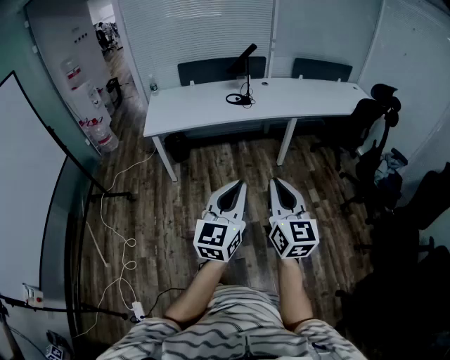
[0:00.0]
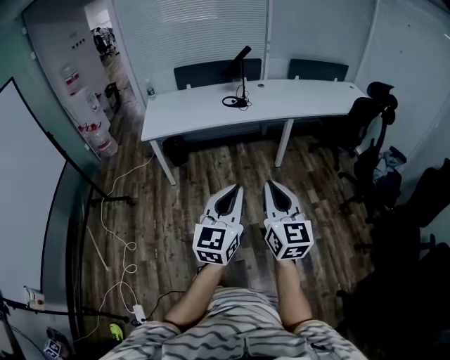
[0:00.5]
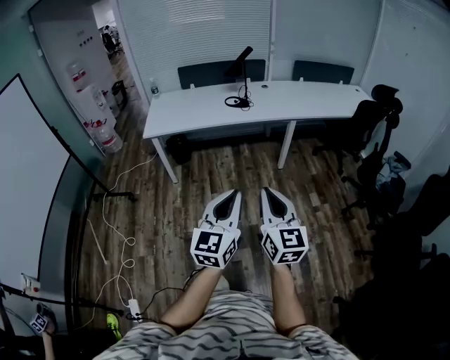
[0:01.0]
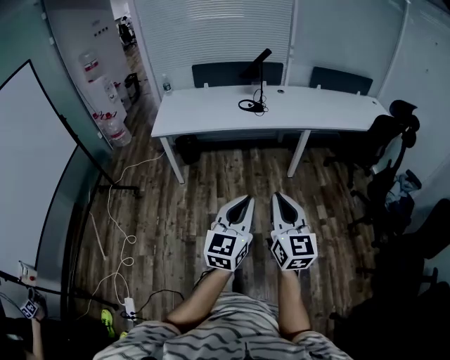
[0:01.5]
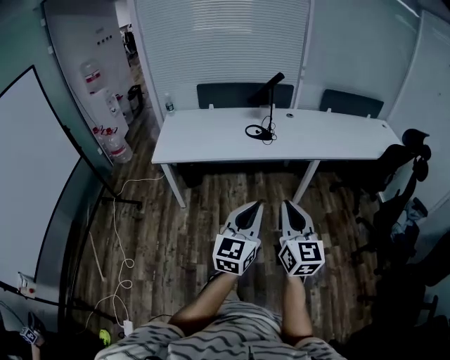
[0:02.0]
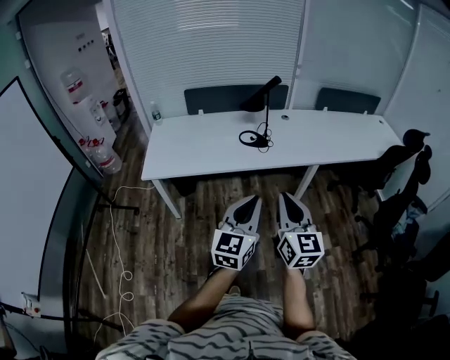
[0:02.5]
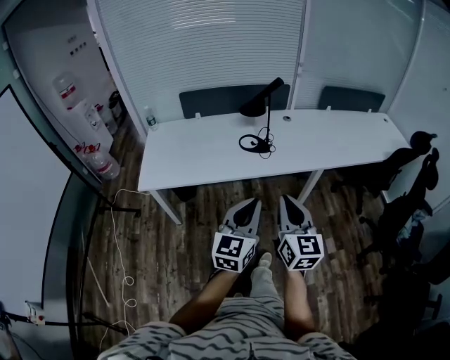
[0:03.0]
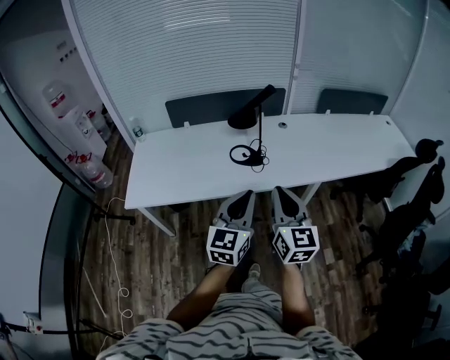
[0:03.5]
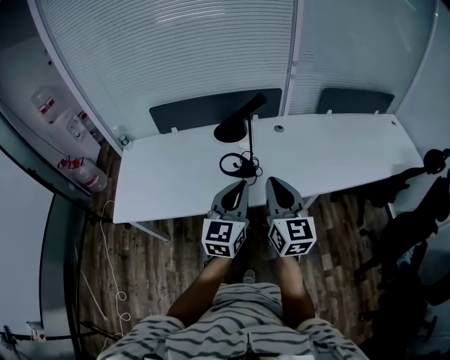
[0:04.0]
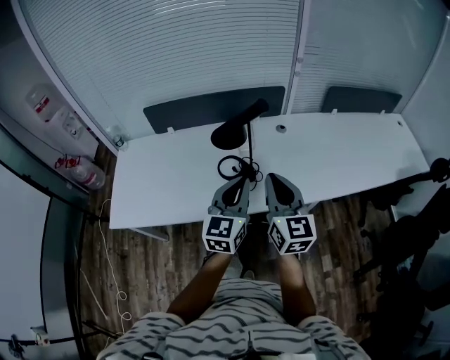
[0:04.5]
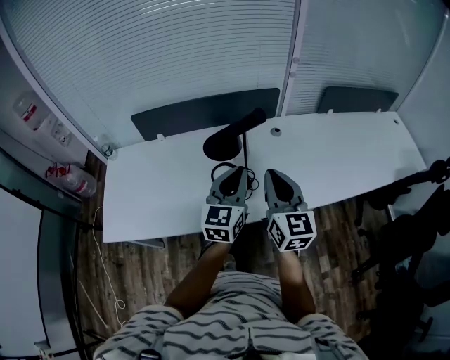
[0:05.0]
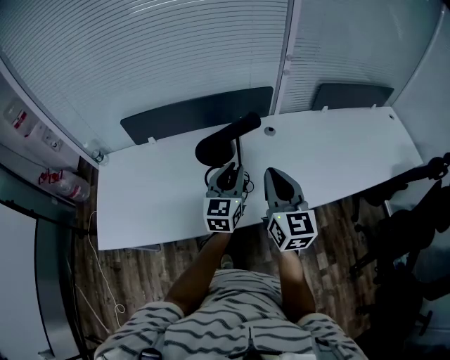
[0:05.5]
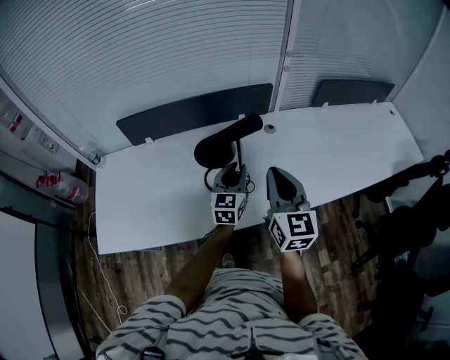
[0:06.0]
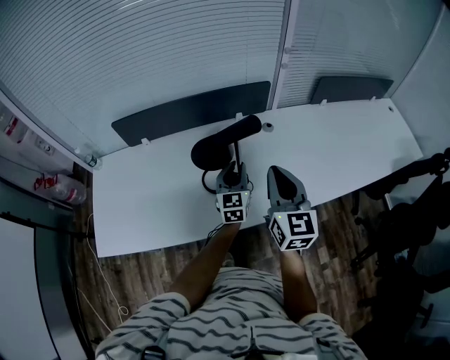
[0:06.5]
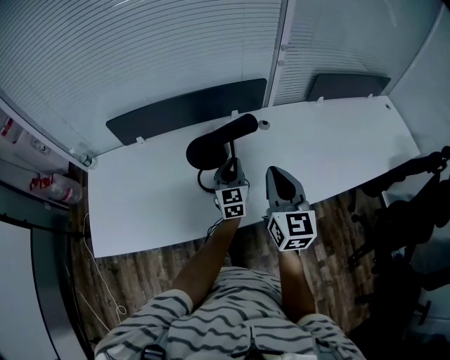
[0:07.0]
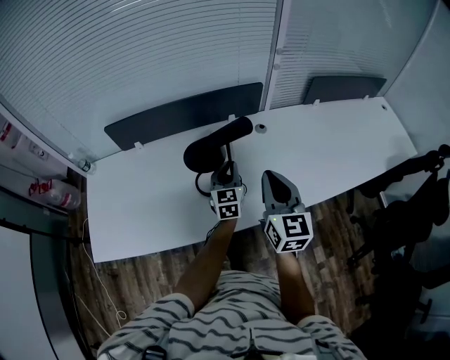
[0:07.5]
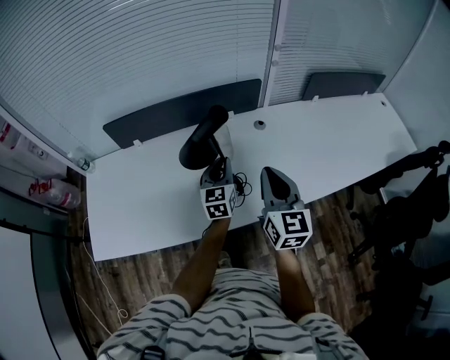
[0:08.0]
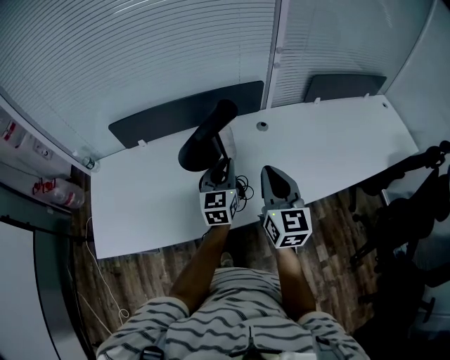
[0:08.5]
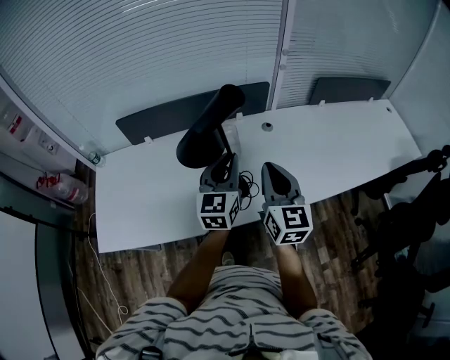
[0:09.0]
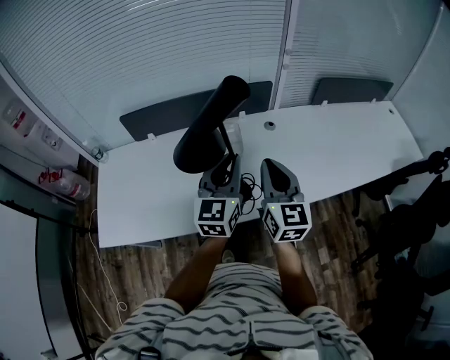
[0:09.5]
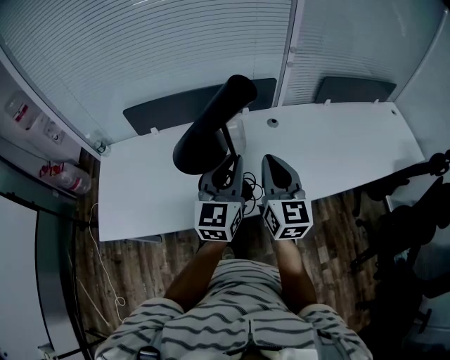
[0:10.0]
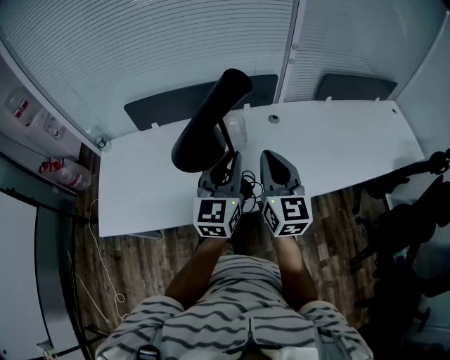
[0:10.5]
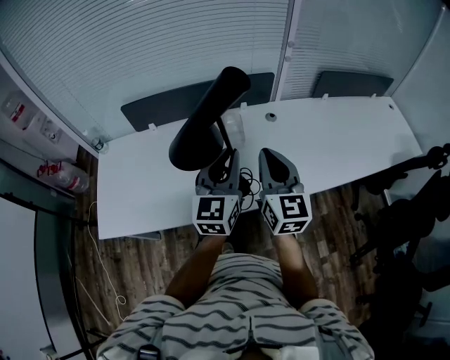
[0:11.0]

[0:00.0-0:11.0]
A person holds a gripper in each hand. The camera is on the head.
0:00.0 to 0:02.0: The grippers both shift forward by about 25 cm.
0:02.0 to 0:03.5: Both grippers travel together forward, about 35 cm.
0:03.5 to 0:05.5: The two grippers go approximately 35 cm forward.
0:05.5 to 0:07.5: The right gripper ends up some 5 cm from where it was, while the left gripper goes some 15 cm downward and forward.
0:07.5 to 0:09.0: The left gripper travels upward and backward by approximately 15 cm.
0:09.0 to 0:11.0: The left gripper heads backward, covering some 5 cm.

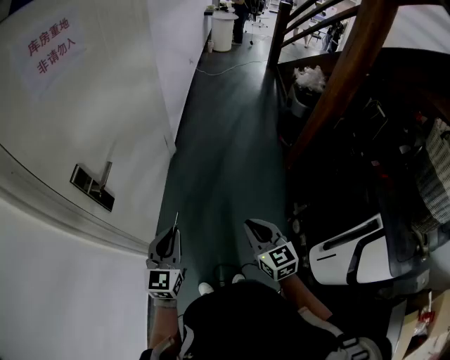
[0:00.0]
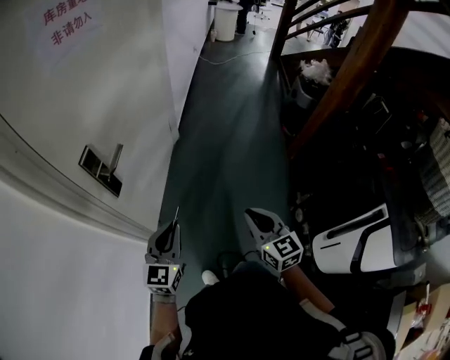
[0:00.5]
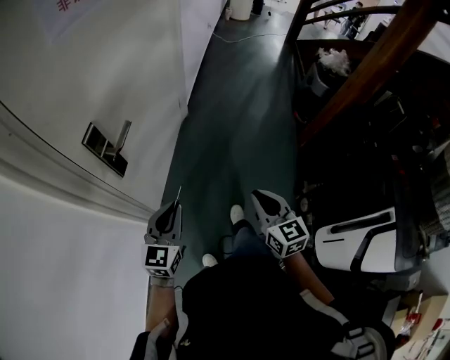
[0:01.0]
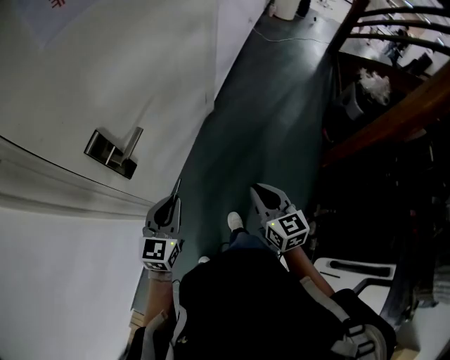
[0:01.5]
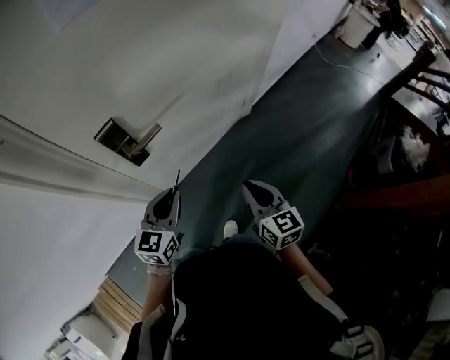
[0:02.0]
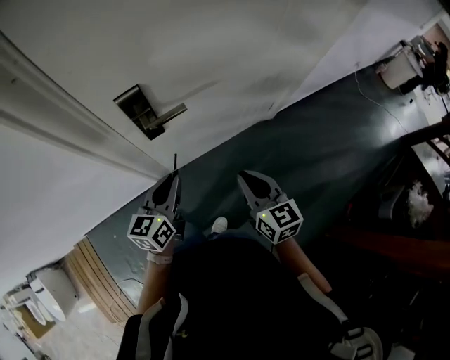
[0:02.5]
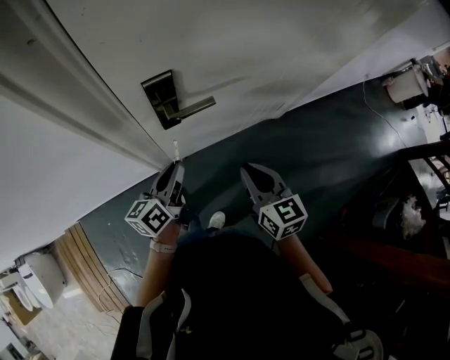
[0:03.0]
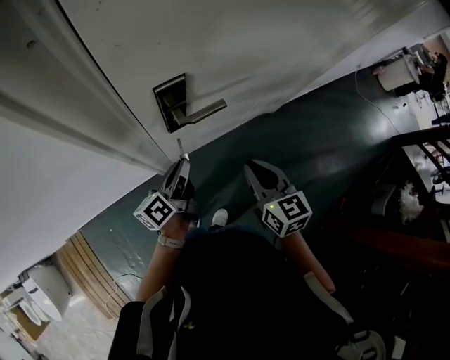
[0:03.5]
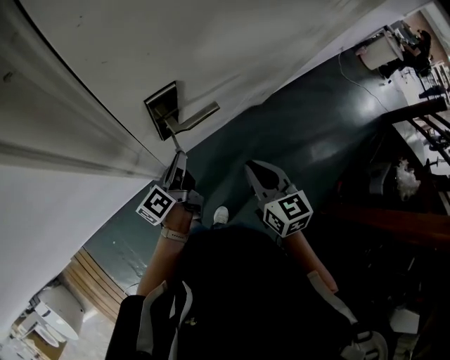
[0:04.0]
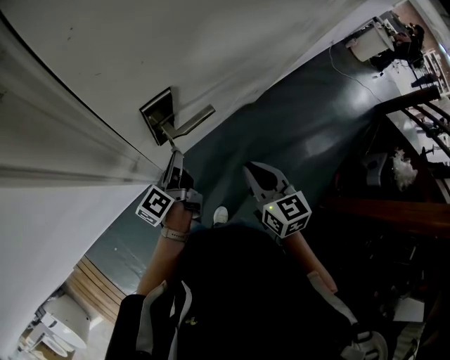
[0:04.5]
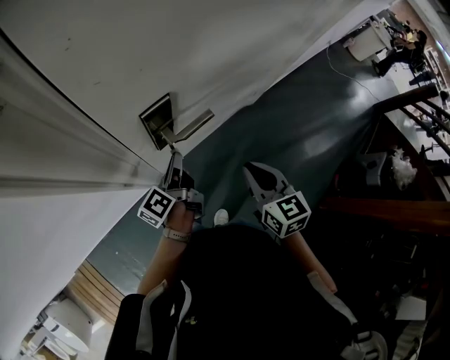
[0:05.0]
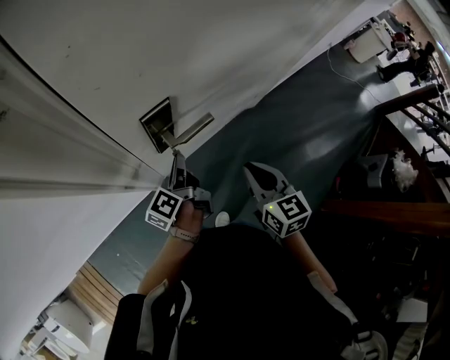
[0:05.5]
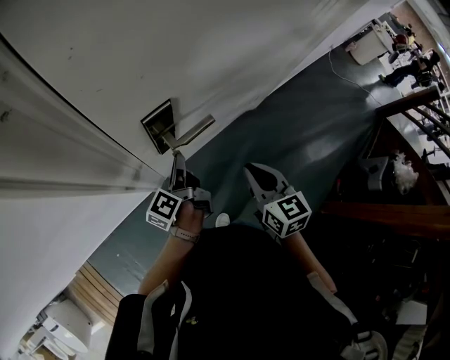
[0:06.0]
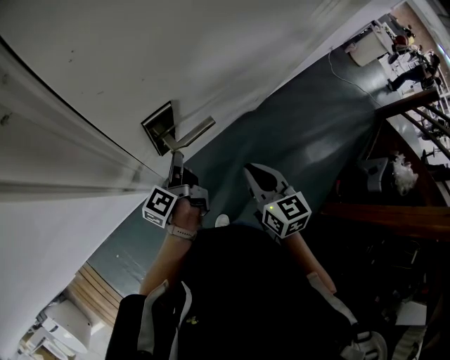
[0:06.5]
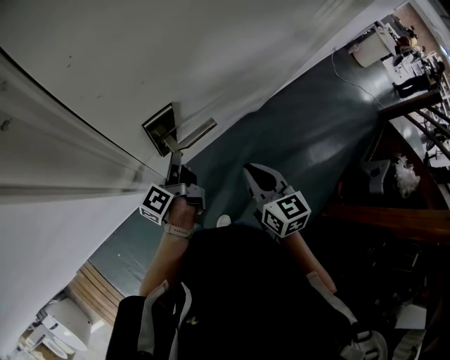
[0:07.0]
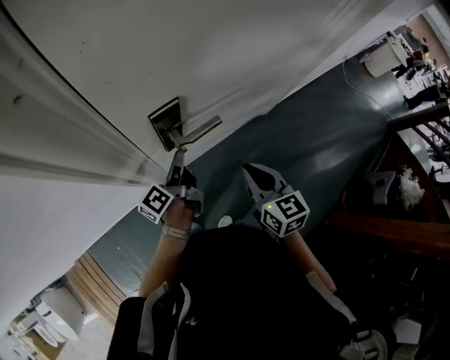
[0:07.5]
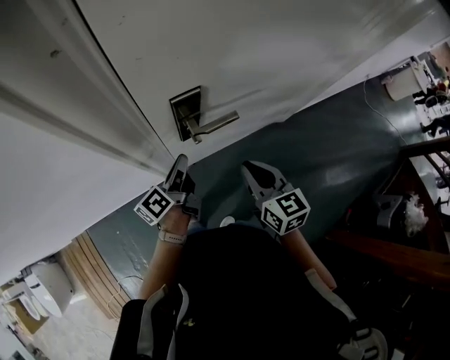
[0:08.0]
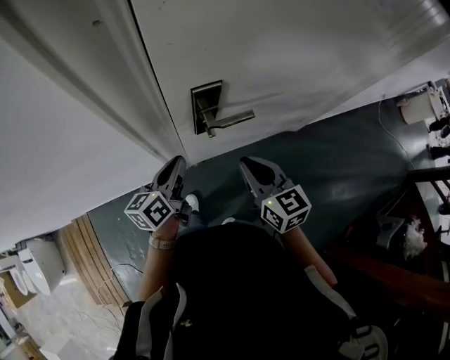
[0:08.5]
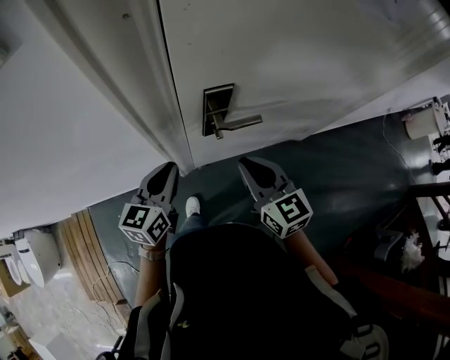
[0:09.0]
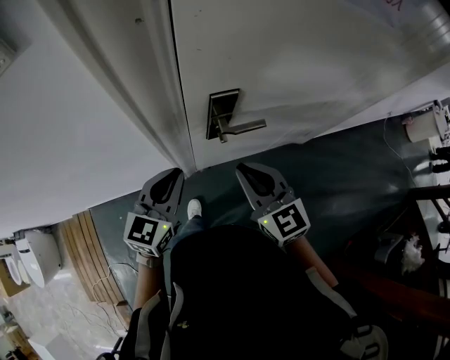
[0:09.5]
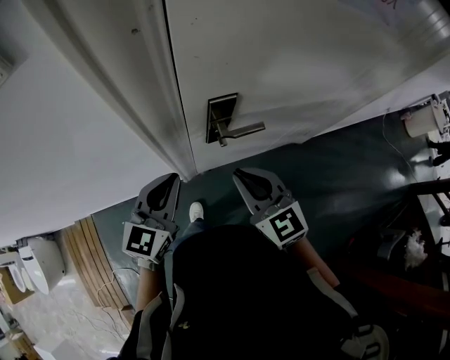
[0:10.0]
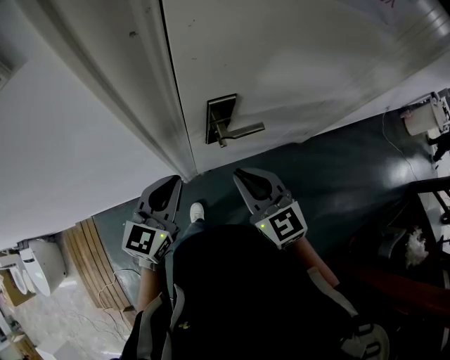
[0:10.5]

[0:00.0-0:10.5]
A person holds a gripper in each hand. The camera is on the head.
0:00.0 to 0:02.0: The left gripper changes place by about 25 cm, and turns by about 30 degrees. The right gripper changes place by roughly 35 cm, and changes its angle by some 40 degrees.
0:02.0 to 0:04.0: The right gripper shifts some 15 cm to the left and forward. Meanwhile the left gripper travels forward, to the left and downward by approximately 20 cm, and twists roughly 70 degrees counterclockwise, seen from behind.
0:04.0 to 0:06.5: The grippers make only small movements.
0:06.5 to 0:08.5: The right gripper is displaced to the left by some 10 cm, and turns by approximately 20 degrees; the left gripper heads backward, to the left and upward, covering about 15 cm, and turns by roughly 40 degrees.
0:08.5 to 0:10.5: The right gripper goes roughly 10 cm to the left and upward, while the left gripper goes about 10 cm upward, and swivels approximately 40 degrees.

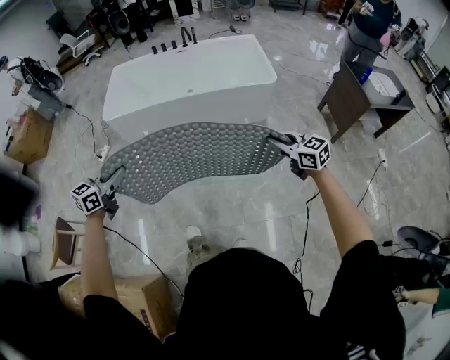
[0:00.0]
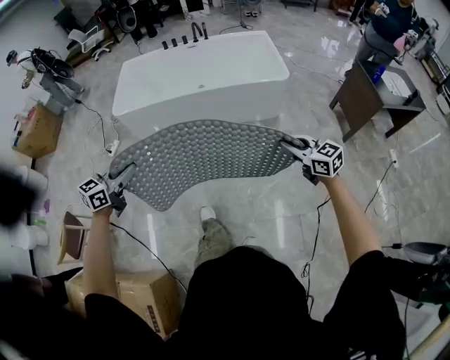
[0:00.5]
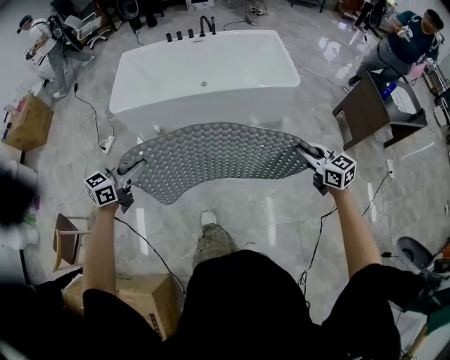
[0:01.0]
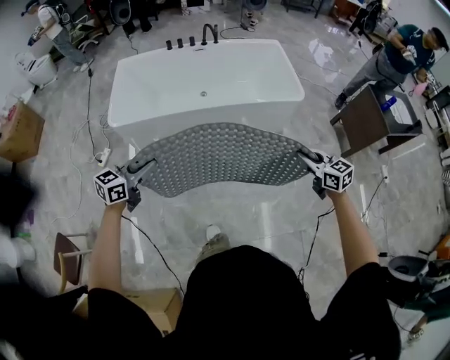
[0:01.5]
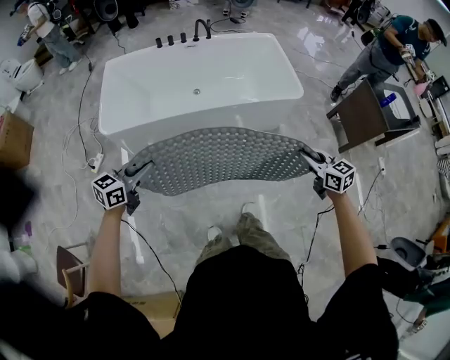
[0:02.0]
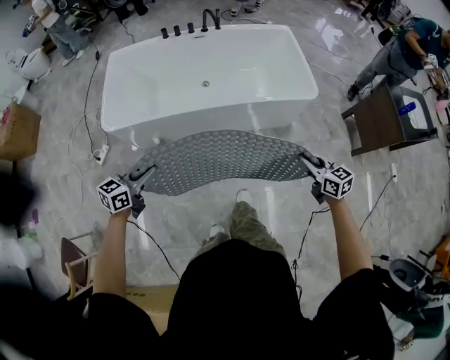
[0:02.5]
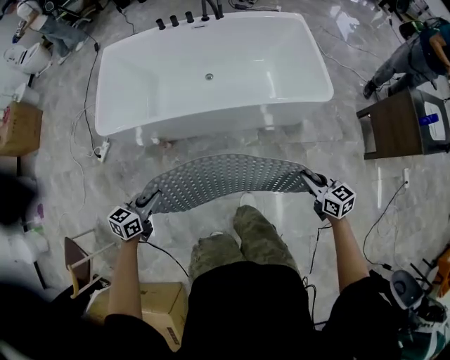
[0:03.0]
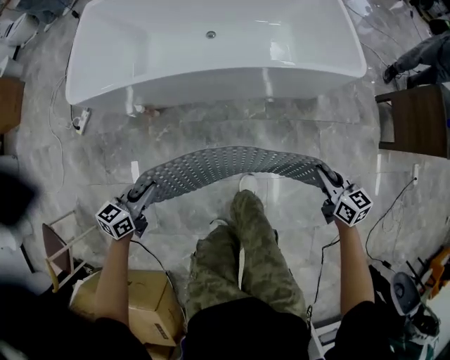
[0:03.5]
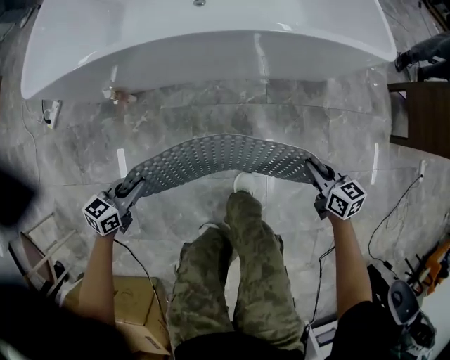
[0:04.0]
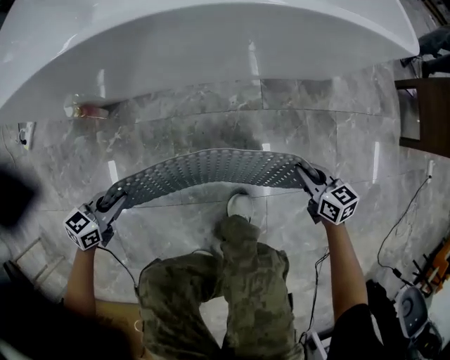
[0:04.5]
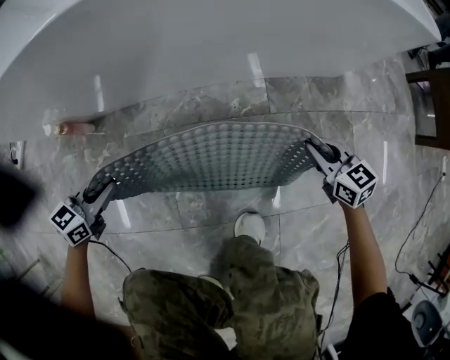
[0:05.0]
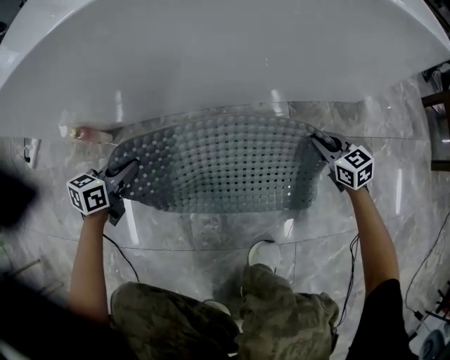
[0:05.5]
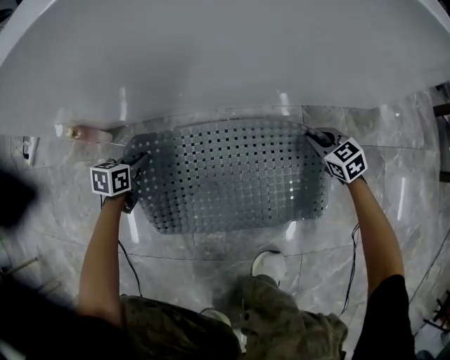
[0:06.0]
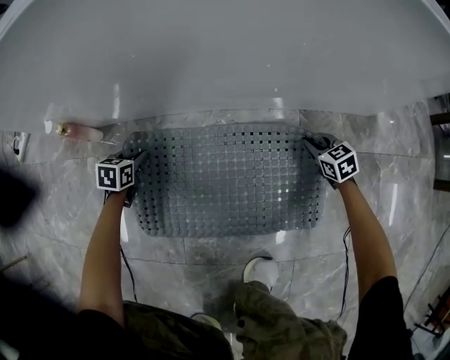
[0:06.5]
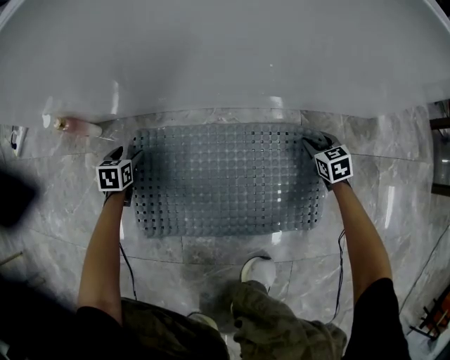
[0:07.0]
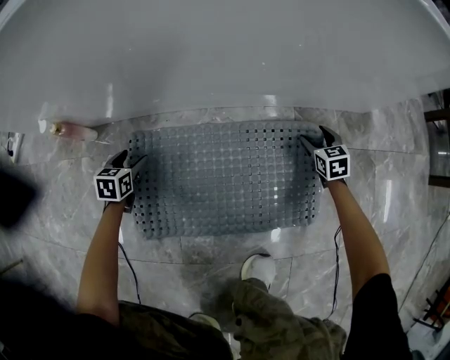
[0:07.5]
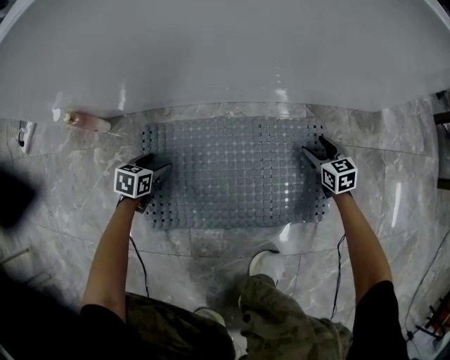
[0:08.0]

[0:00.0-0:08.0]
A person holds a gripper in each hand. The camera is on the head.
0:00.0 to 0:02.0: Both grippers move forward and to the left, approximately 30 cm.
0:02.0 to 0:04.0: The grippers both shift downward by about 60 cm. The left gripper turns by roughly 20 degrees, while the right gripper swivels roughly 20 degrees.
0:04.0 to 0:06.0: Both grippers travel together downward and forward, roughly 50 cm. The left gripper swivels about 20 degrees; the right gripper changes its angle by roughly 30 degrees.
0:06.0 to 0:08.0: Both grippers move downward, approximately 5 cm. The right gripper opens; the left gripper opens up.
